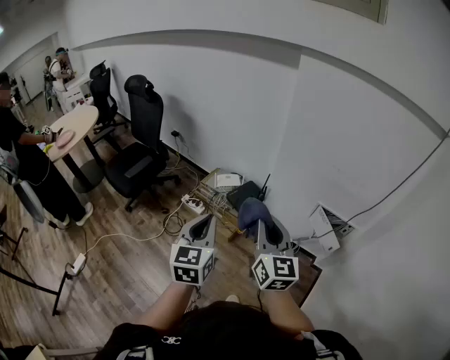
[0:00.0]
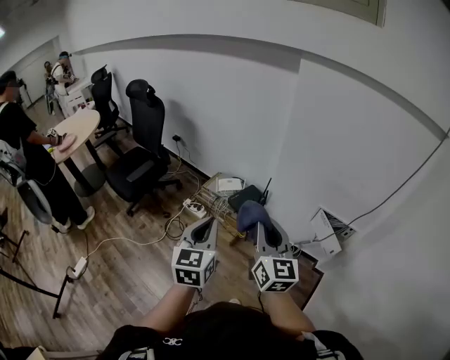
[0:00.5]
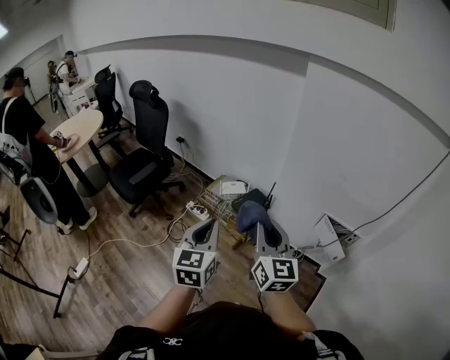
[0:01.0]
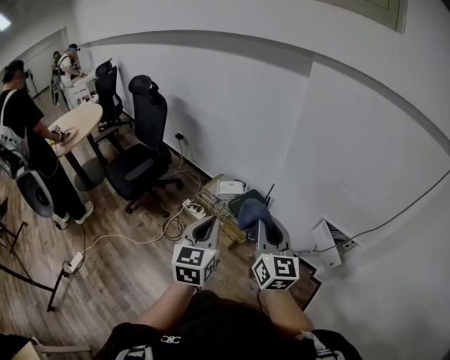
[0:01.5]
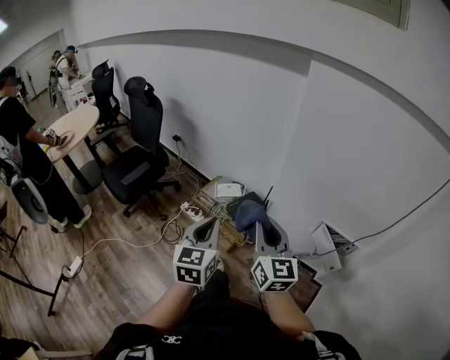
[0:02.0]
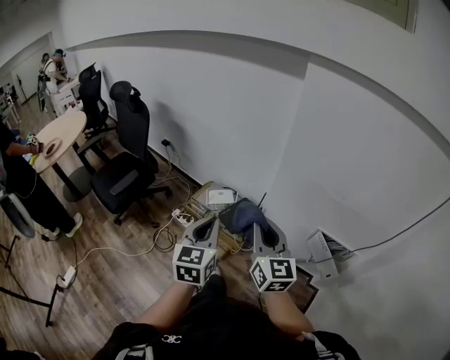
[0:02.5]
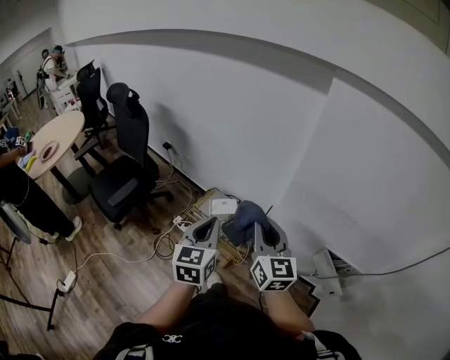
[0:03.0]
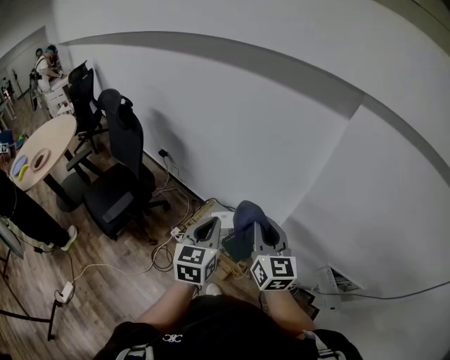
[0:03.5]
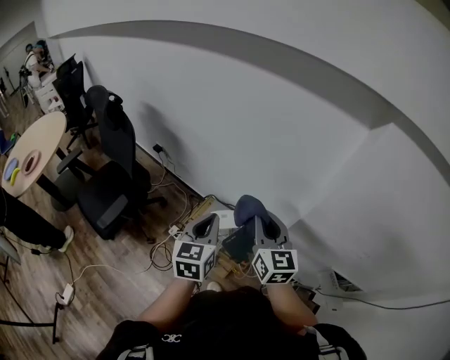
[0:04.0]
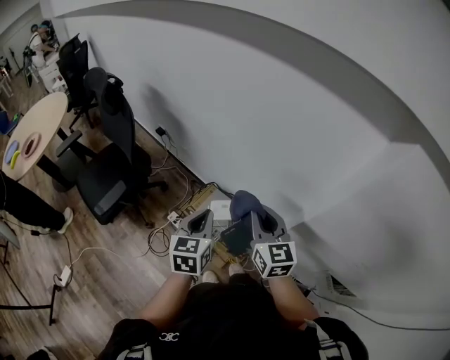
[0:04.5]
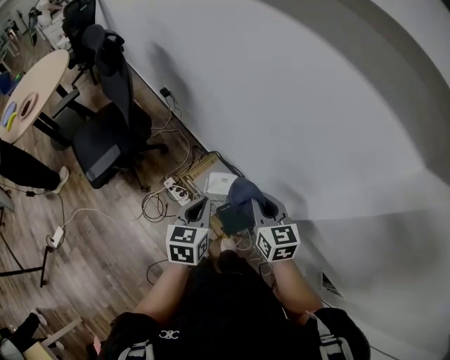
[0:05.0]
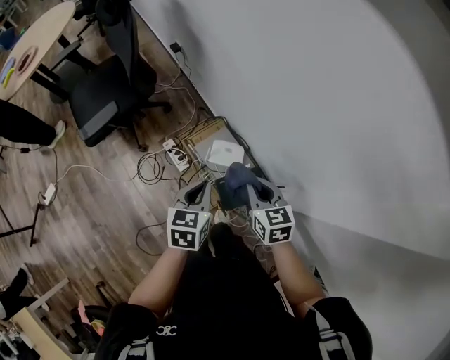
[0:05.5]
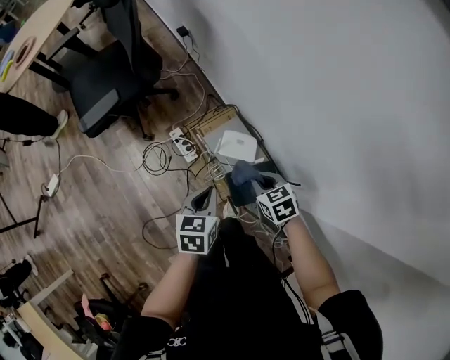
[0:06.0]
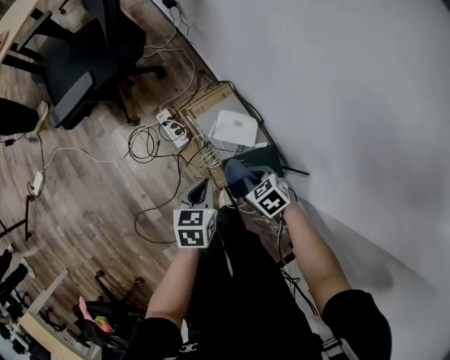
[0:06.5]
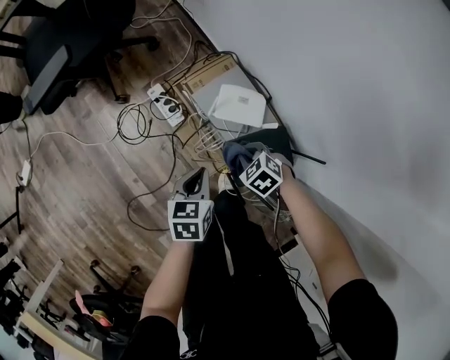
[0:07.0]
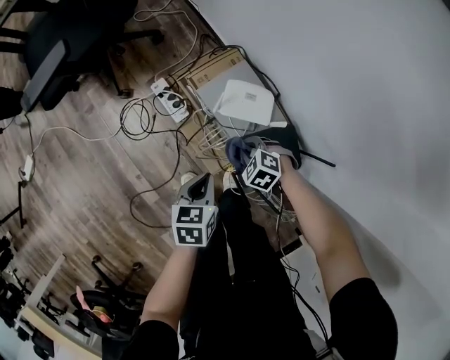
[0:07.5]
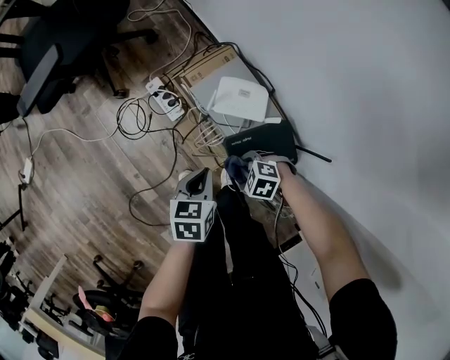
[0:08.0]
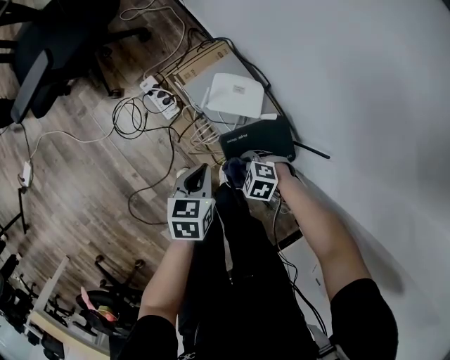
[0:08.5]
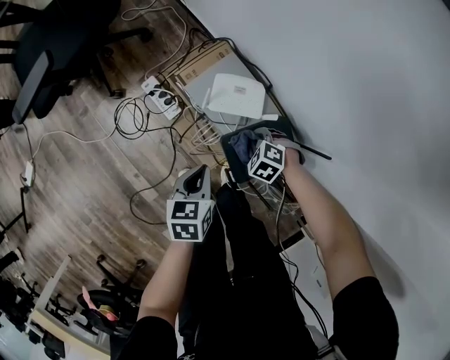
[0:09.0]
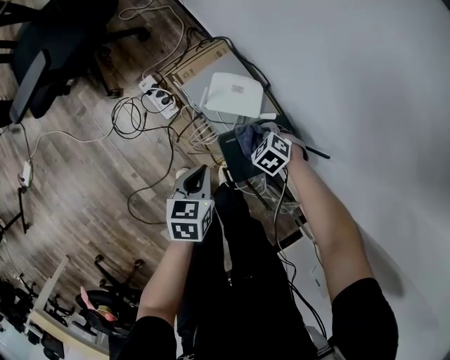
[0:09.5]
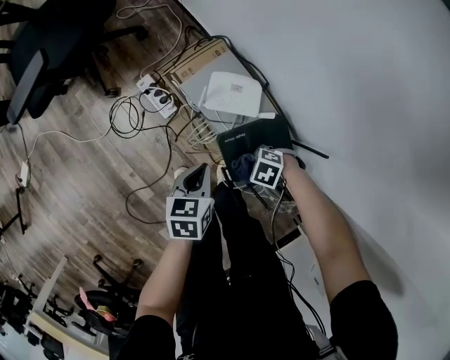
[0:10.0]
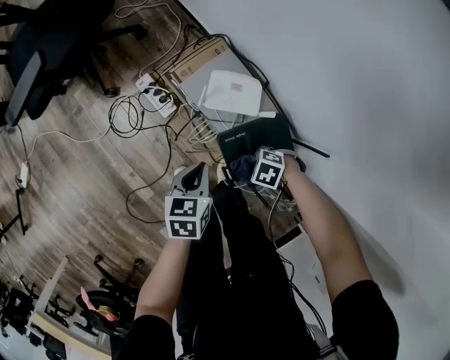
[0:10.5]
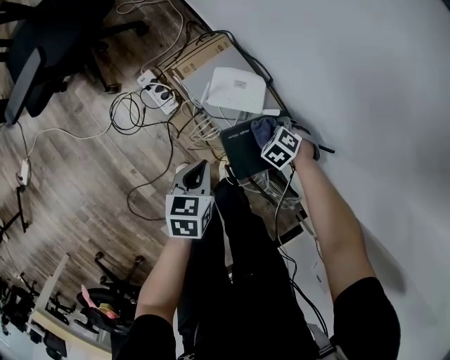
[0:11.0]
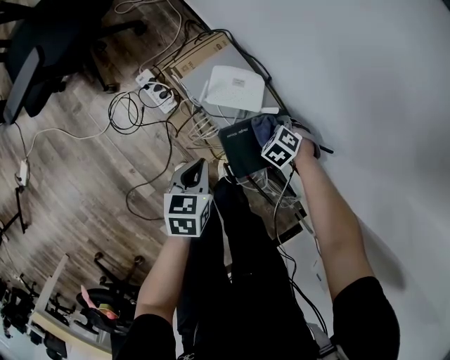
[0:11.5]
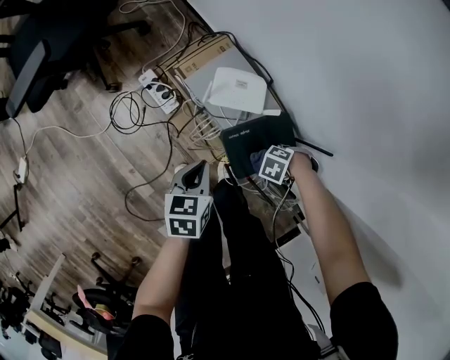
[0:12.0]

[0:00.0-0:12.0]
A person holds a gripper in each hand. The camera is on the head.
0:00.0 to 0:02.0: Both grippers move forward, about 10 cm.
0:02.0 to 0:04.0: The grippers both shift forward by approximately 40 cm.
0:04.0 to 0:06.0: The grippers both shift downward by approximately 35 cm. The left gripper rotates some 40 degrees. Meanwhile the right gripper points its fingers some 50 degrees further downward.
0:06.0 to 0:08.0: Both grippers travel together downward, some 25 cm. The right gripper swivels approximately 50 degrees.

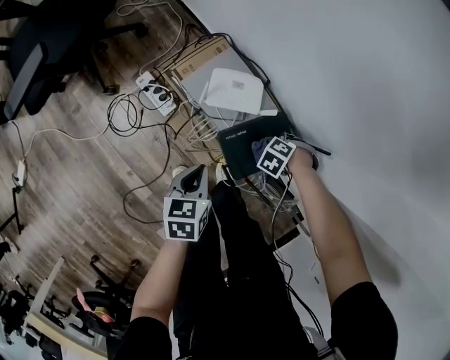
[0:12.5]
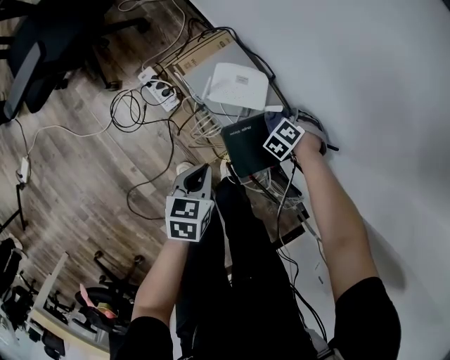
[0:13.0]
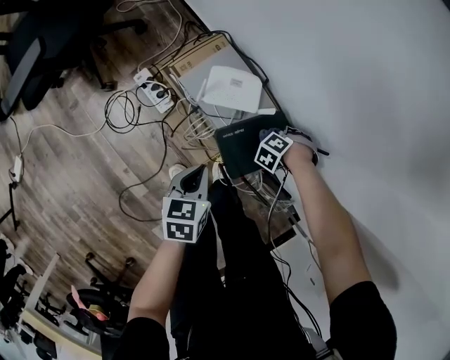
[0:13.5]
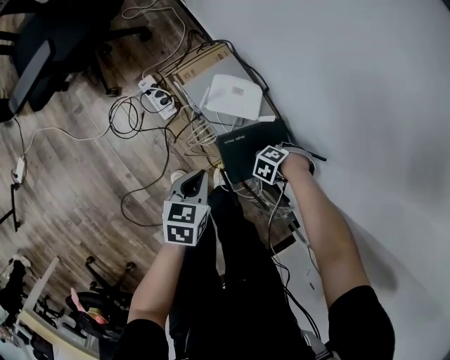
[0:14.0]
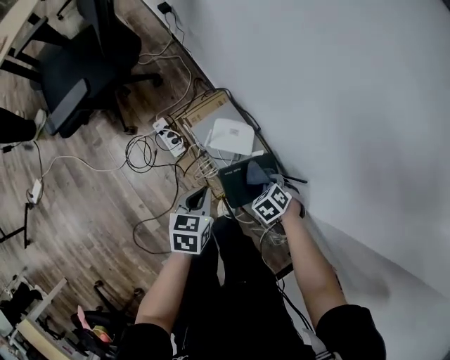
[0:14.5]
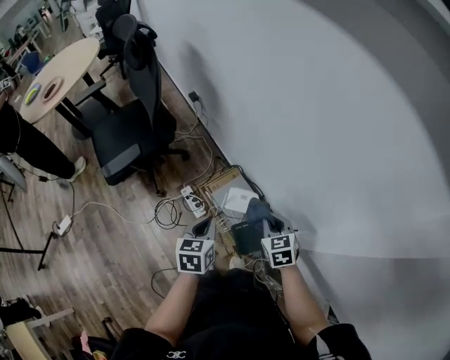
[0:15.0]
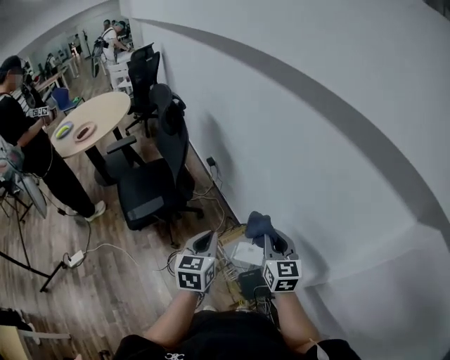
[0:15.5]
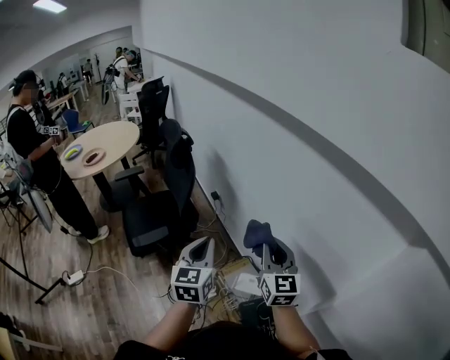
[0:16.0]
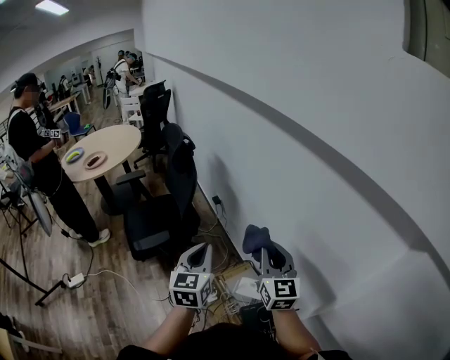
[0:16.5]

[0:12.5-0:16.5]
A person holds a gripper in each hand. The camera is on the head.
0:12.5 to 0:14.5: Both grippers travel together upward, some 10 cm. The right gripper rotates approximately 30 degrees.
0:14.5 to 0:16.5: Both grippers travel together upward, roughly 60 cm. The left gripper points its fingers approximately 30 degrees further upward. Meanwhile the right gripper tilts its fingers approximately 80 degrees upward.

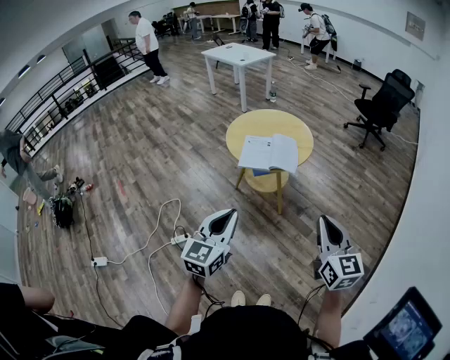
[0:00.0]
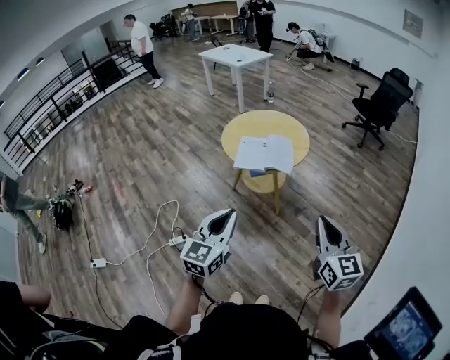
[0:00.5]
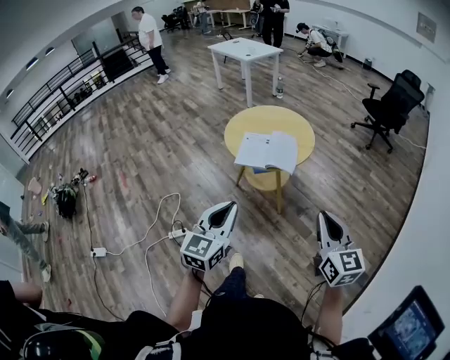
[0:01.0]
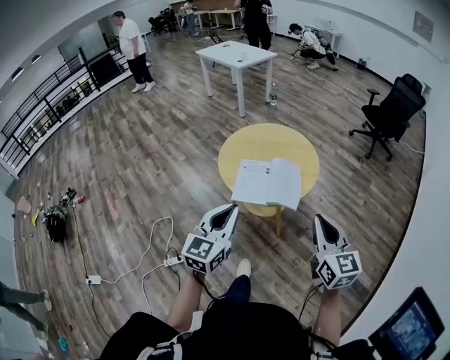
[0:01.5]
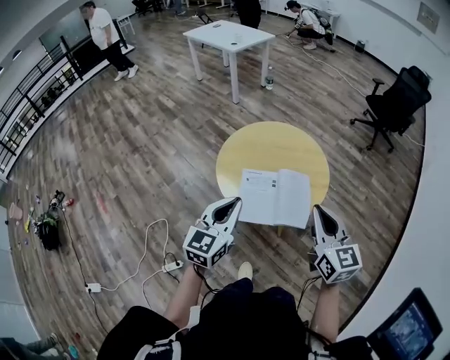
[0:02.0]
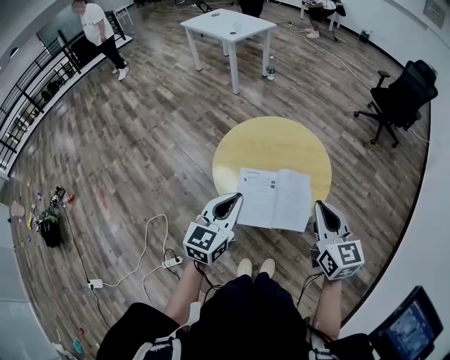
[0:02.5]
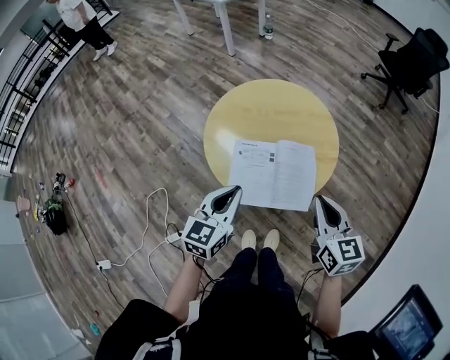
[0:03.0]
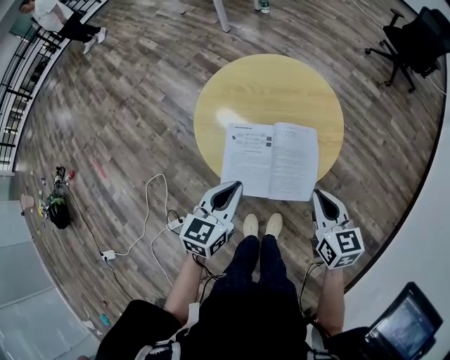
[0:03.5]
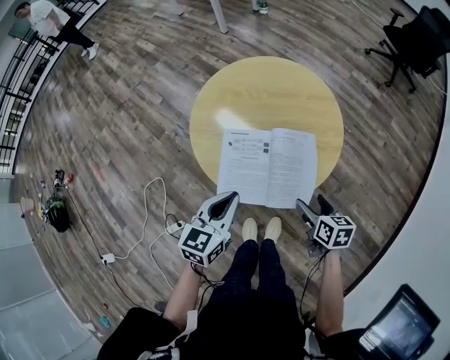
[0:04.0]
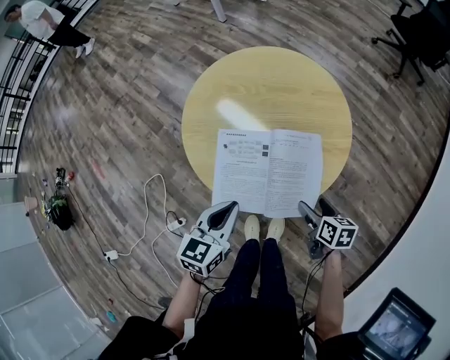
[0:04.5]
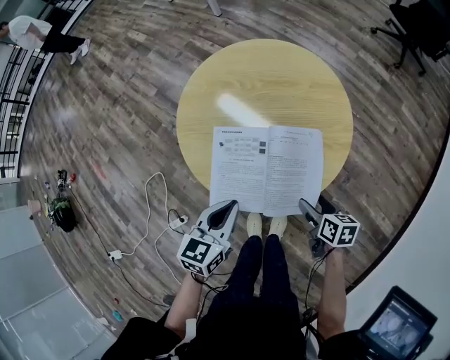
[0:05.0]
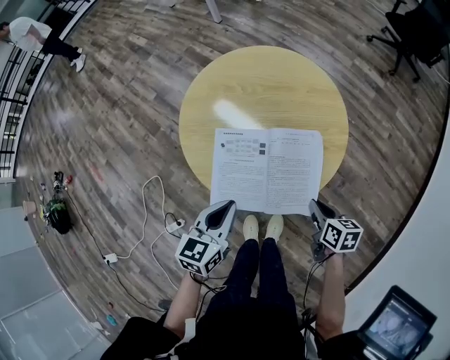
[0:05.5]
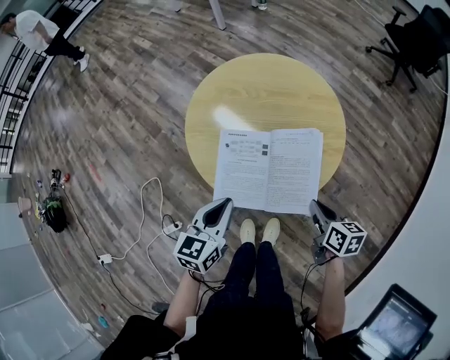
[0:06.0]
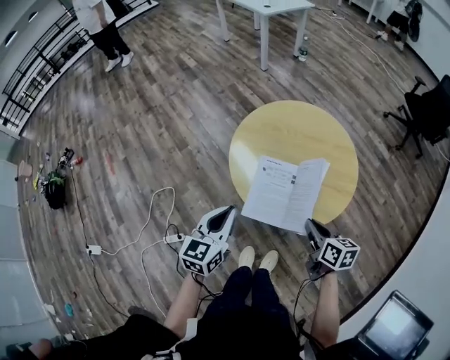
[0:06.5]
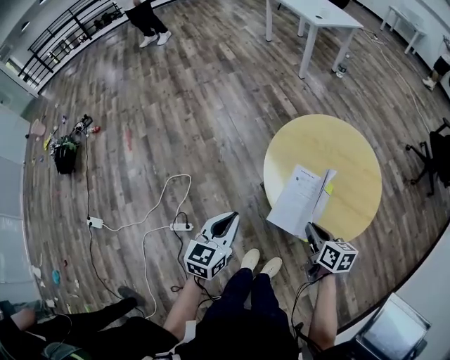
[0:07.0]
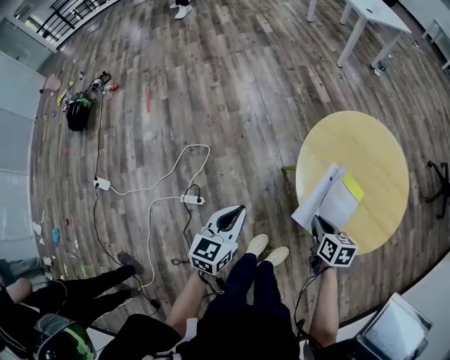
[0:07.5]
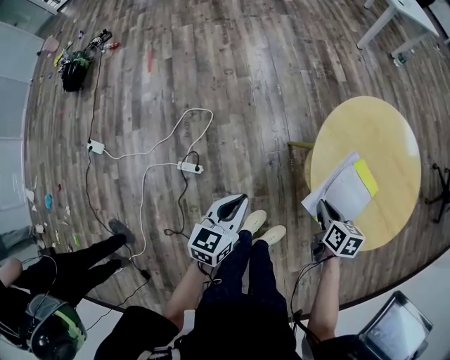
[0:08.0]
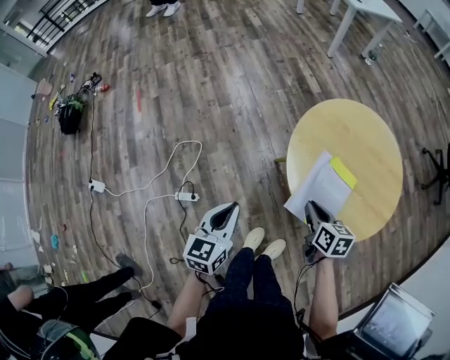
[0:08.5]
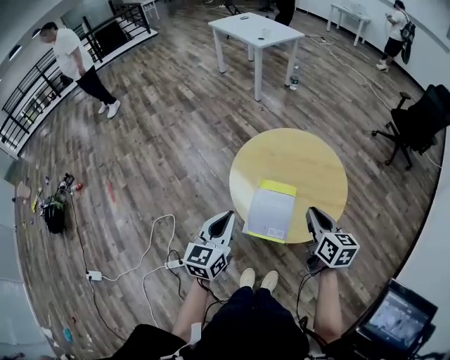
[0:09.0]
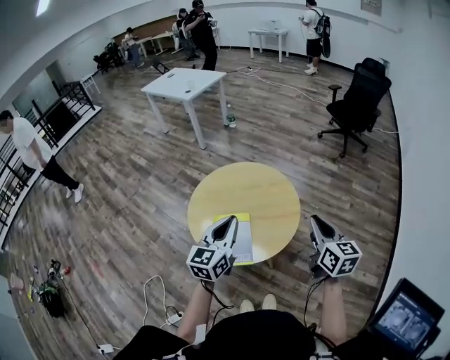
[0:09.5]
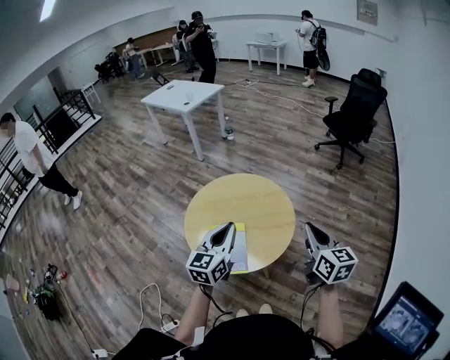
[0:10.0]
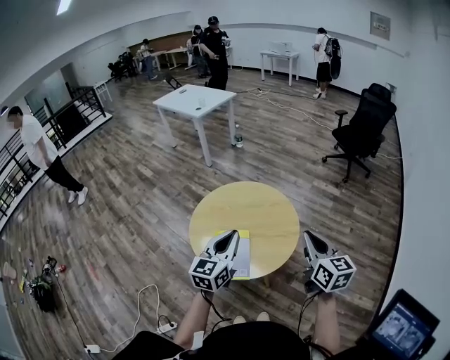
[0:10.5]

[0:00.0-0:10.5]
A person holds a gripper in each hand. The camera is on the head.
0:00.0 to 0:02.0: The two grippers go about 40 cm forward.
0:02.0 to 0:04.0: The right gripper heads downward, covering some 30 cm, points its fingers roughly 30 degrees further downward, and opens. Meanwhile the left gripper goes about 15 cm downward, and swivels about 20 degrees.
0:04.0 to 0:06.5: The left gripper goes approximately 10 cm to the left. The right gripper shifts roughly 10 cm upward and to the left, and closes.
0:06.5 to 0:08.5: The left gripper shifts some 15 cm to the left and downward, and swivels roughly 20 degrees. Meanwhile the right gripper heads to the left, forward and downward, covering approximately 20 cm.
0:08.5 to 0:10.5: The right gripper shifts by some 40 cm, and tips its fingers upward by about 30 degrees. The left gripper moves about 35 cm, and rotates about 40 degrees.
